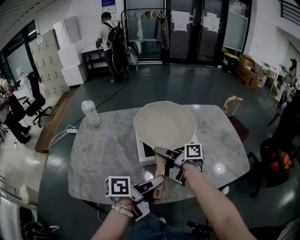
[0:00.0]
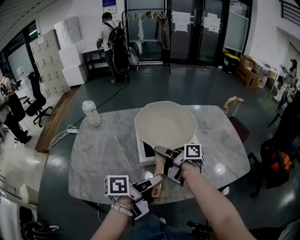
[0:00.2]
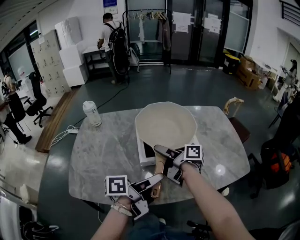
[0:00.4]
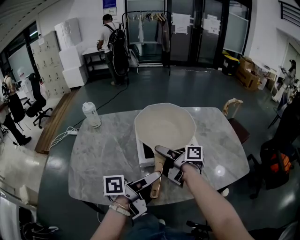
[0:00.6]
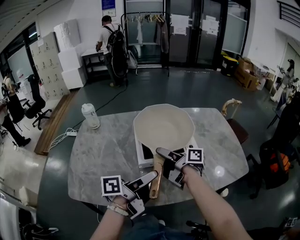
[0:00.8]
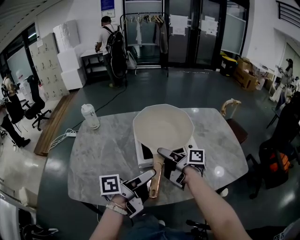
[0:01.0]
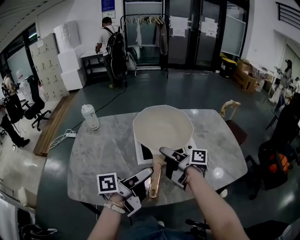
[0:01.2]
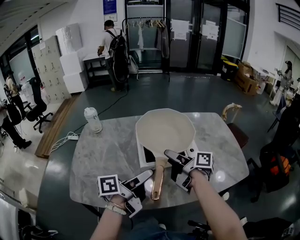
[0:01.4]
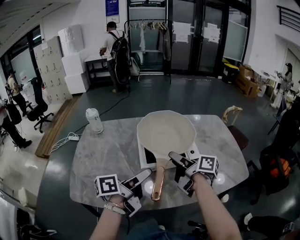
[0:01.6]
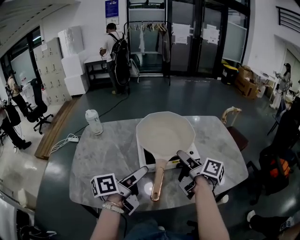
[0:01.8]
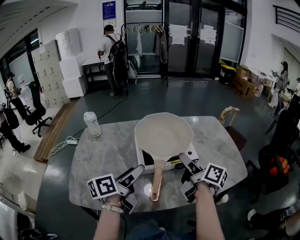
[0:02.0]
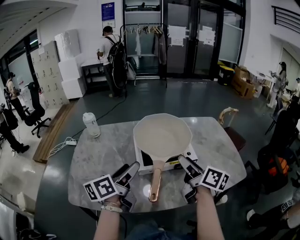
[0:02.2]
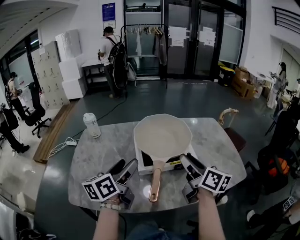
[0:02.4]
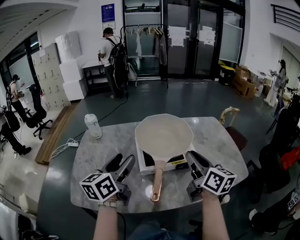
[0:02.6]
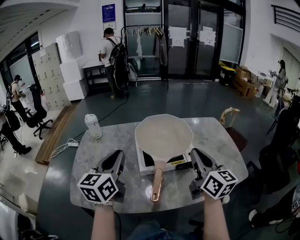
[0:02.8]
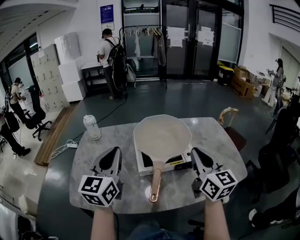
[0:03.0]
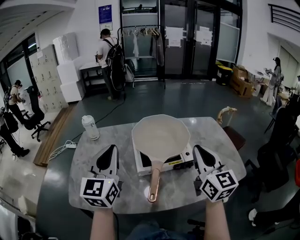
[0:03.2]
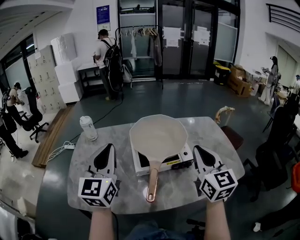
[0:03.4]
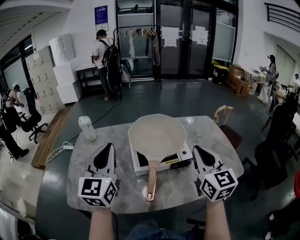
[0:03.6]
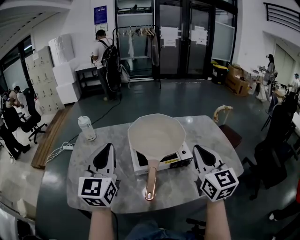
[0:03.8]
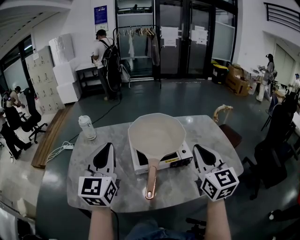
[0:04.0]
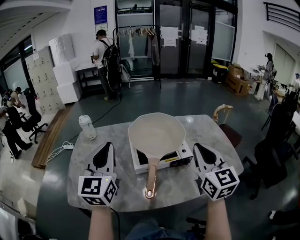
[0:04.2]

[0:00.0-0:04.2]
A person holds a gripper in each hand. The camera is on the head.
0:00.0 to 0:01.4: The right gripper ends up some 5 cm from where it was, and opens its fingers, while the left gripper shifts by approximately 5 cm, and opens.
0:01.4 to 0:02.8: The right gripper shifts about 15 cm upward and to the right, twists approximately 50 degrees counterclockwise, seen from behind, and closes; the left gripper is displaced to the left and upward by some 15 cm, rotates around the line of its fingers by some 60 degrees, clockwise from behind, and closes.
0:02.8 to 0:04.2: The left gripper moves upward, approximately 5 cm, and turns by approximately 20 degrees; the right gripper swivels some 30 degrees.

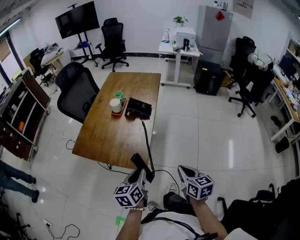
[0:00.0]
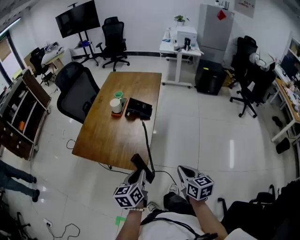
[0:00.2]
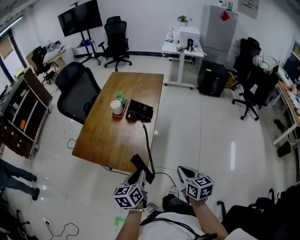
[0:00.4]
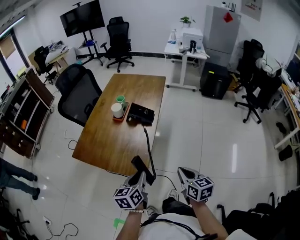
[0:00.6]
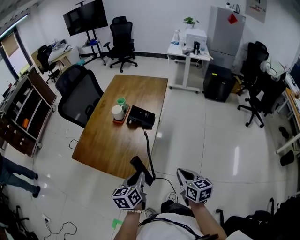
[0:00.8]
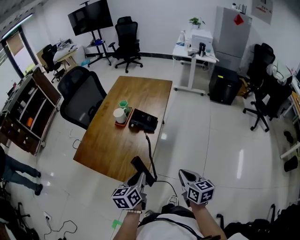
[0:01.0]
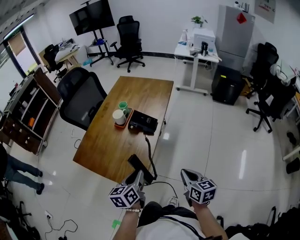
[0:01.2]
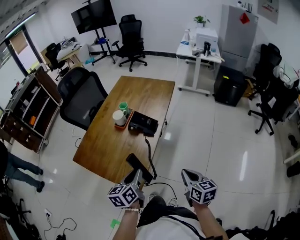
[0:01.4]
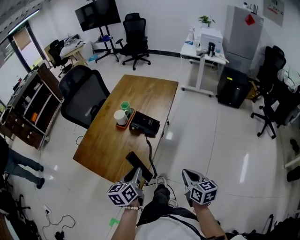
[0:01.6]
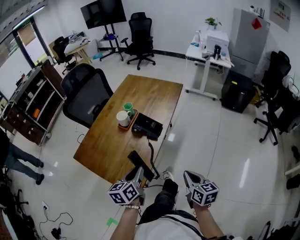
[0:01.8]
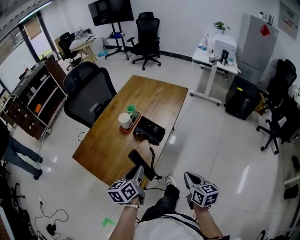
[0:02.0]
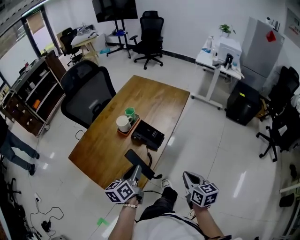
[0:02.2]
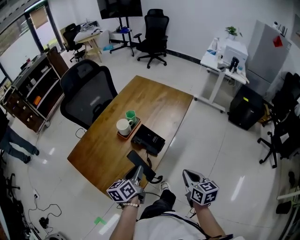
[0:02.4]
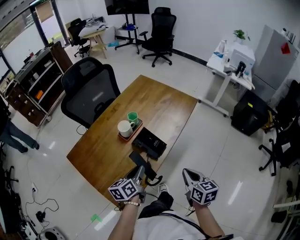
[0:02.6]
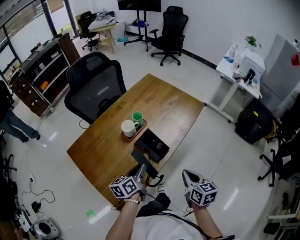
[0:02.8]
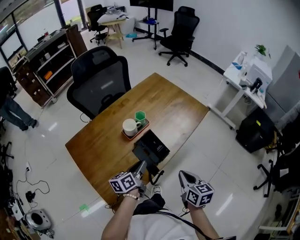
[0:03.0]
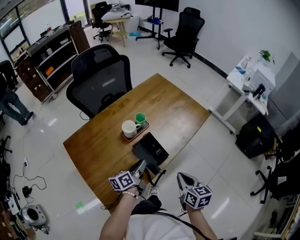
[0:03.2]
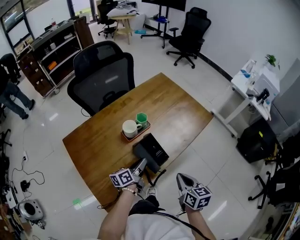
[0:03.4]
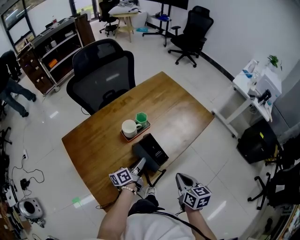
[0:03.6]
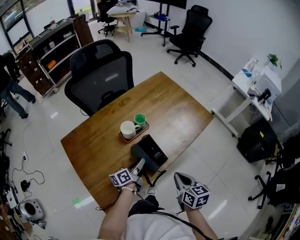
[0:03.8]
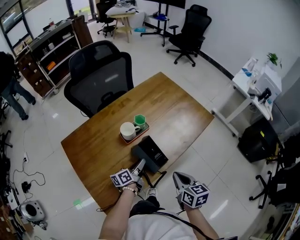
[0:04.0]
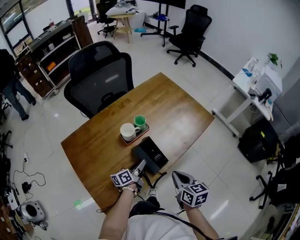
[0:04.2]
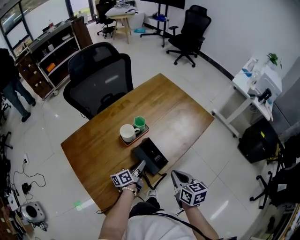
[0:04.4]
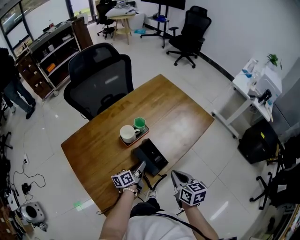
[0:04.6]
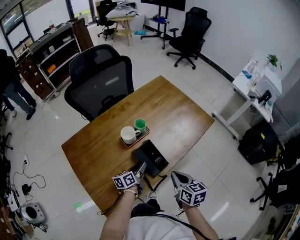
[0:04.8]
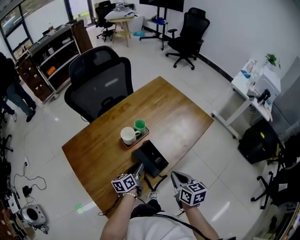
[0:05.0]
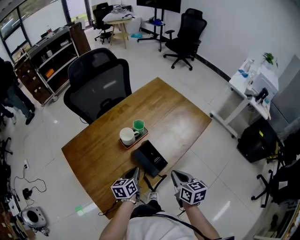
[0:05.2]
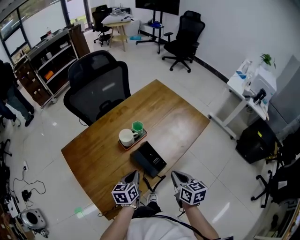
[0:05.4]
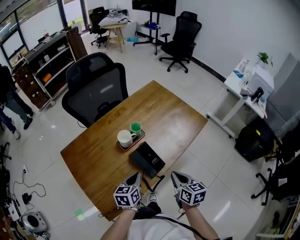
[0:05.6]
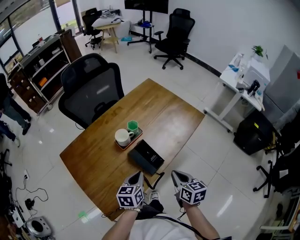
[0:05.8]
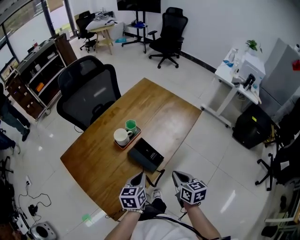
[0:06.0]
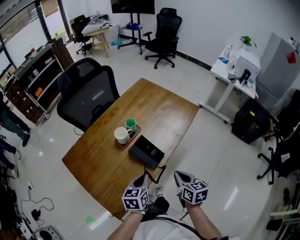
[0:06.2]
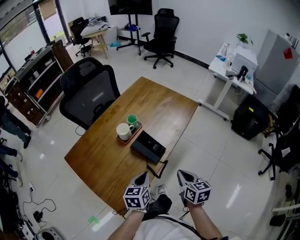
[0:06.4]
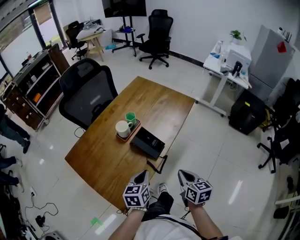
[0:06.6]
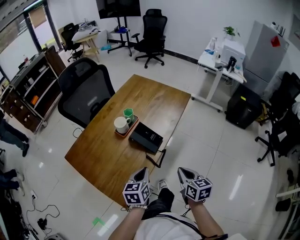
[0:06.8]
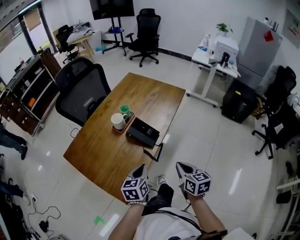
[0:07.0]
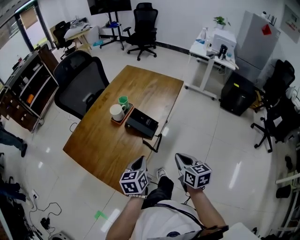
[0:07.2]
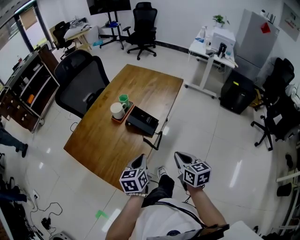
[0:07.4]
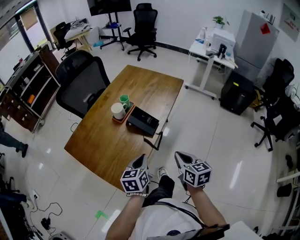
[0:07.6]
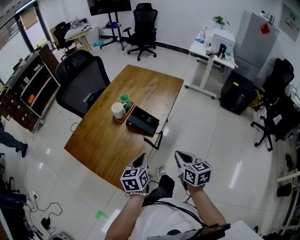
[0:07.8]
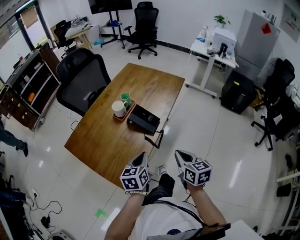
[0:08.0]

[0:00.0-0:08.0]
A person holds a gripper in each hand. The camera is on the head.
0:00.0 to 0:01.6: The right gripper heads forward and to the right, covering roughly 20 cm. Meanwhile the left gripper moves forward, about 15 cm.
0:01.6 to 0:03.2: The left gripper travels forward and downward by roughly 25 cm, and turns by some 30 degrees. The right gripper goes approximately 25 cm forward, and swivels about 20 degrees.
0:03.2 to 0:04.8: The left gripper moves downward, some 10 cm. Meanwhile the right gripper is displaced forward by roughly 5 cm.
0:04.8 to 0:06.4: The right gripper shifts approximately 10 cm backward; the left gripper shifts roughly 20 cm backward and upward, changes its angle by approximately 30 degrees, and closes up.
0:06.4 to 0:08.0: Both grippers travel together backward, some 10 cm.

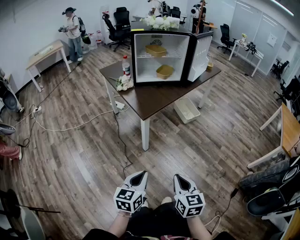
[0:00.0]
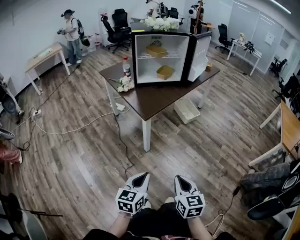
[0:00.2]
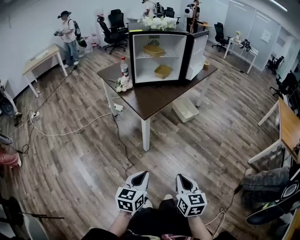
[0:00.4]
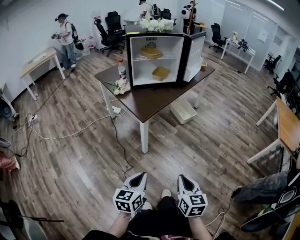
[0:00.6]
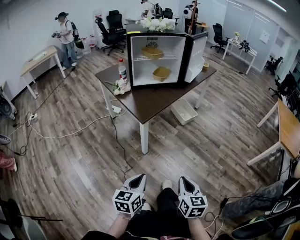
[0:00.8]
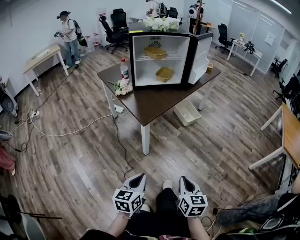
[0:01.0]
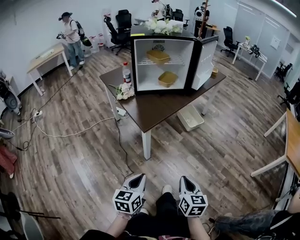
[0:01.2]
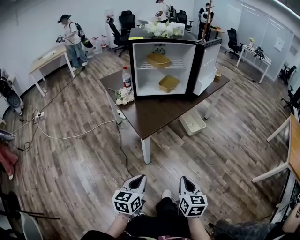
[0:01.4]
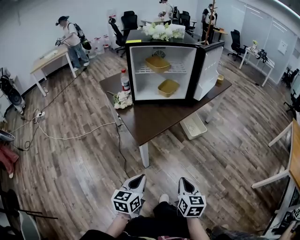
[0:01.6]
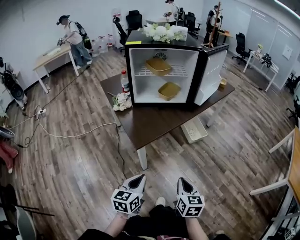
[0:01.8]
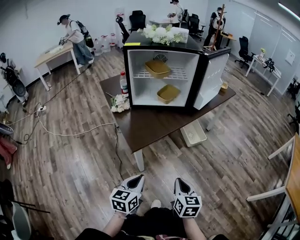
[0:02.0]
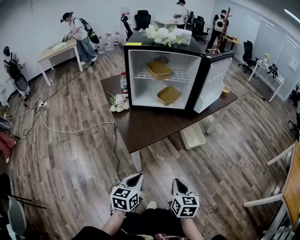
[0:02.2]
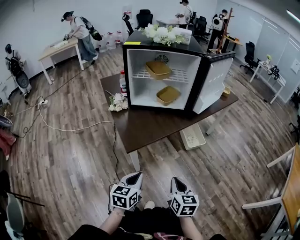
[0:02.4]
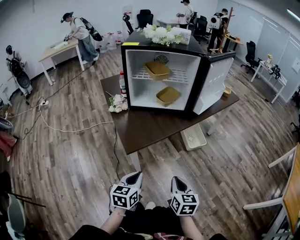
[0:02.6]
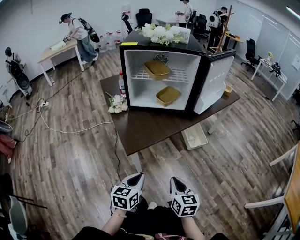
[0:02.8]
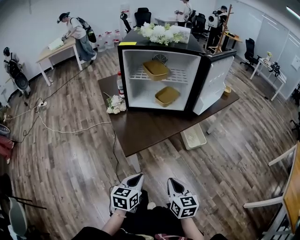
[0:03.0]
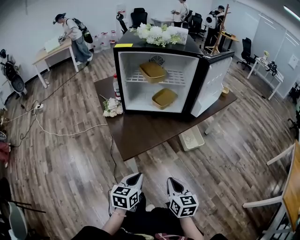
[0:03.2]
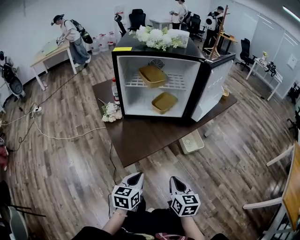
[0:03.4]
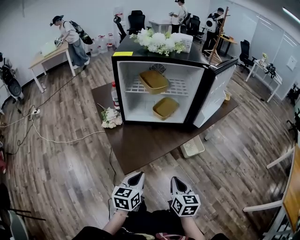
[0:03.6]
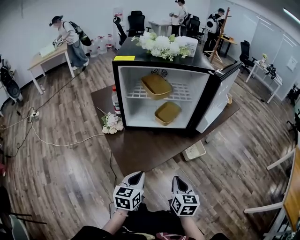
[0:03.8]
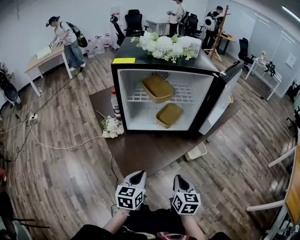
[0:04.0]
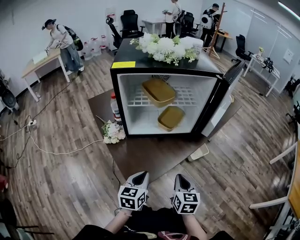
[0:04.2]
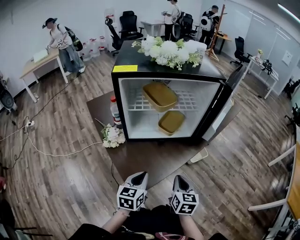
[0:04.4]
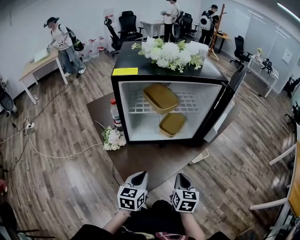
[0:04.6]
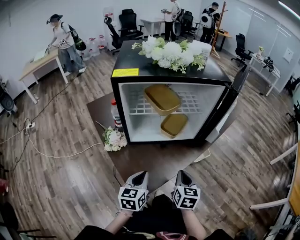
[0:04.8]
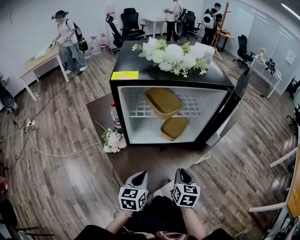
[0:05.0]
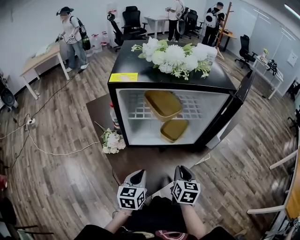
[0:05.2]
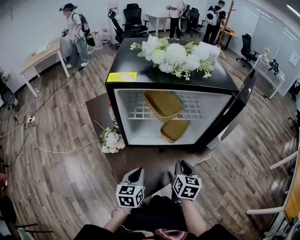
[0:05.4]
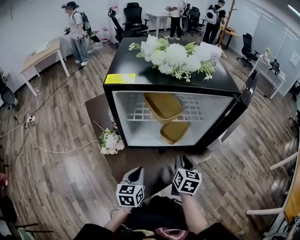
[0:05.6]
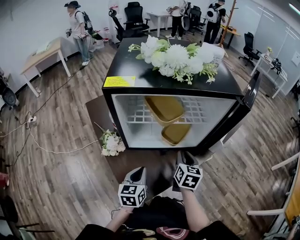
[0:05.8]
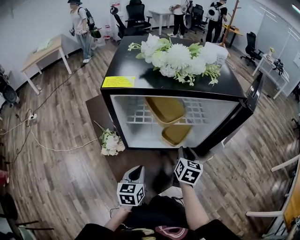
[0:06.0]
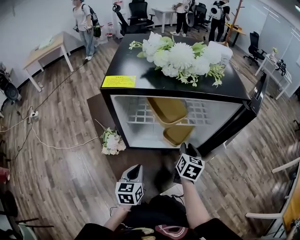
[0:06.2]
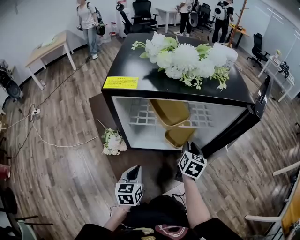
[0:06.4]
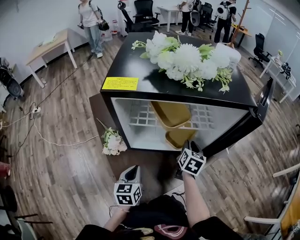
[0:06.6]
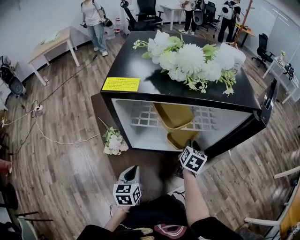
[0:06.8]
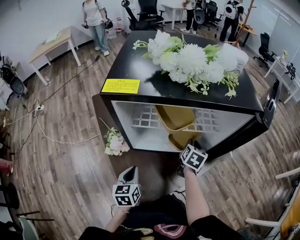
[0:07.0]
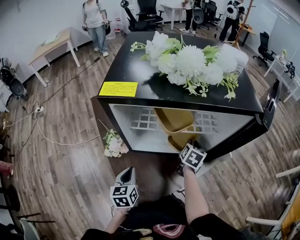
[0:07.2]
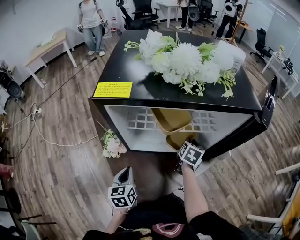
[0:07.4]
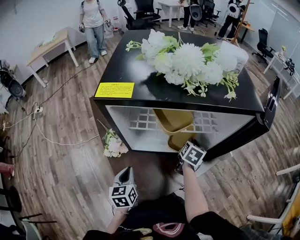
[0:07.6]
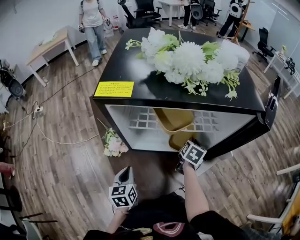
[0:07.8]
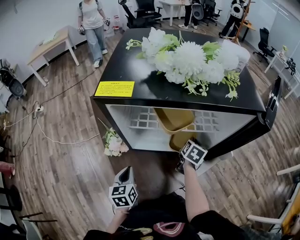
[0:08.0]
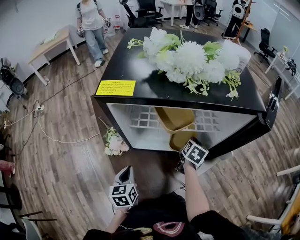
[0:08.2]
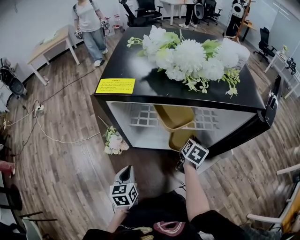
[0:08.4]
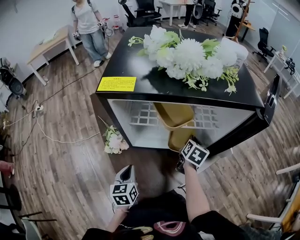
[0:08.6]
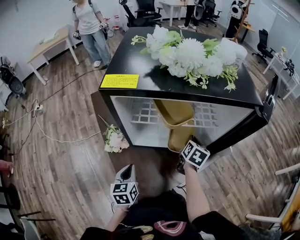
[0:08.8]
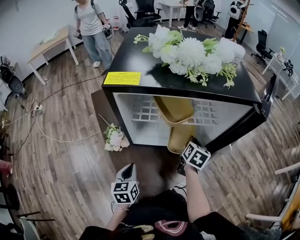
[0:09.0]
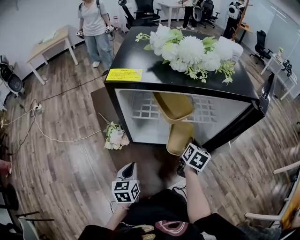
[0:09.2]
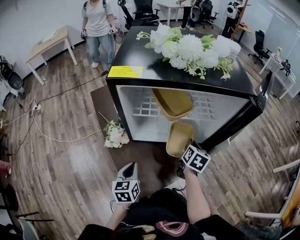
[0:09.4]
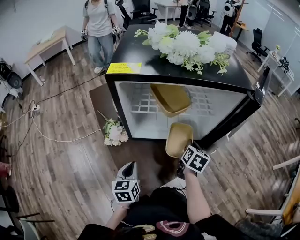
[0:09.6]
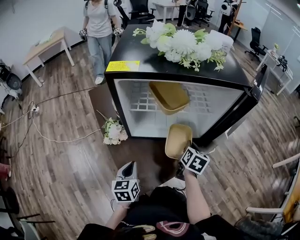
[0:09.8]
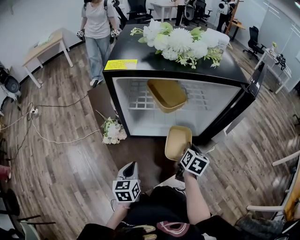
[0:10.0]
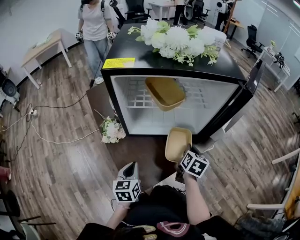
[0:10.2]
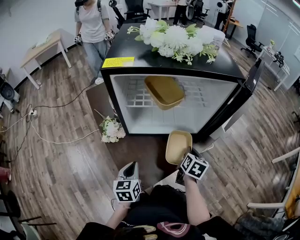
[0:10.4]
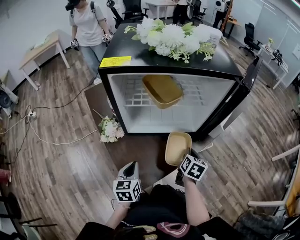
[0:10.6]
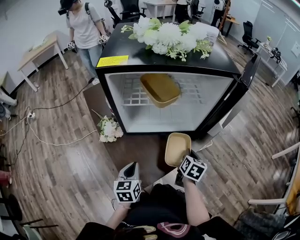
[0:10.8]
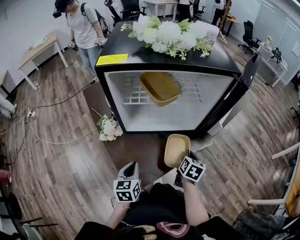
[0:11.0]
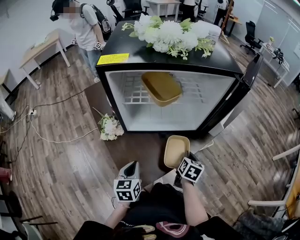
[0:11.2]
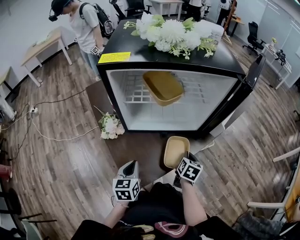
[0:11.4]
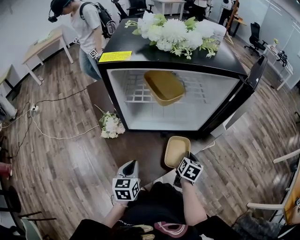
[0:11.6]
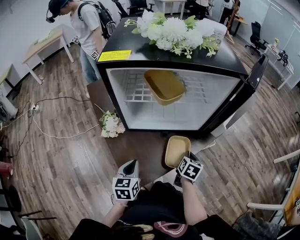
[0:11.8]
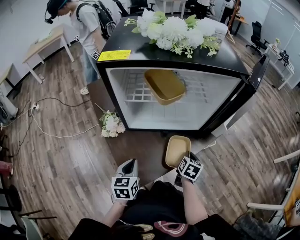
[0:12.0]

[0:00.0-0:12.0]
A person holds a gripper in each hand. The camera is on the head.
0:00.0 to 0:01.6: Both grippers move forward, about 20 cm.
0:01.6 to 0:03.0: The right gripper travels forward by some 10 cm. The left gripper travels forward and to the right by some 15 cm.
0:03.0 to 0:04.4: The grippers both shift forward by about 20 cm. The right gripper turns by roughly 20 degrees.
0:04.4 to 0:06.0: The right gripper shifts roughly 20 cm forward, and opens its fingers, while the left gripper travels forward by about 10 cm.
0:06.0 to 0:07.6: The left gripper is displaced to the left by roughly 5 cm. Meanwhile the right gripper moves forward and downward, about 10 cm.
0:07.6 to 0:09.0: The grippers make only small movements.
0:09.0 to 0:10.4: The left gripper moves approximately 5 cm. The right gripper shifts about 10 cm backward.
0:10.4 to 0:12.0: The right gripper is displaced downward by roughly 5 cm.
